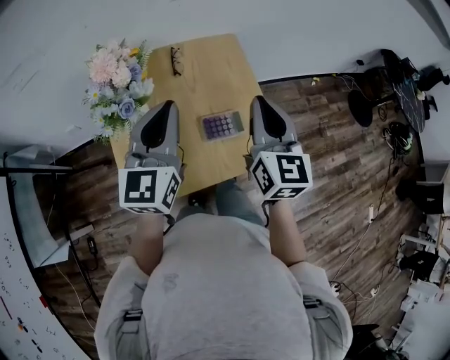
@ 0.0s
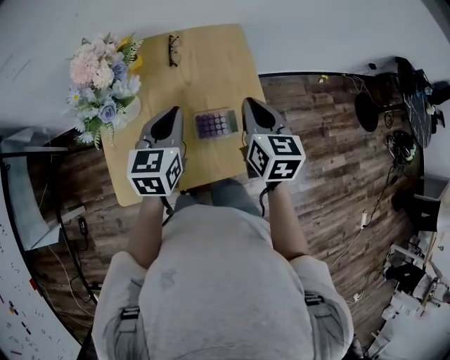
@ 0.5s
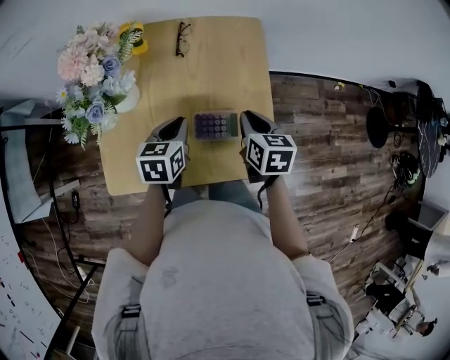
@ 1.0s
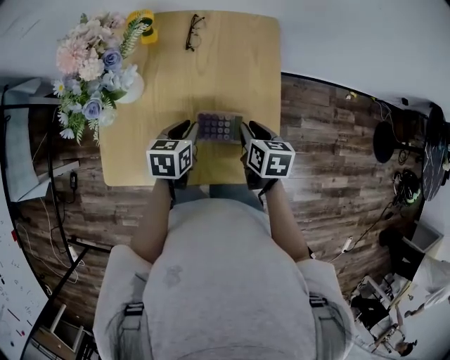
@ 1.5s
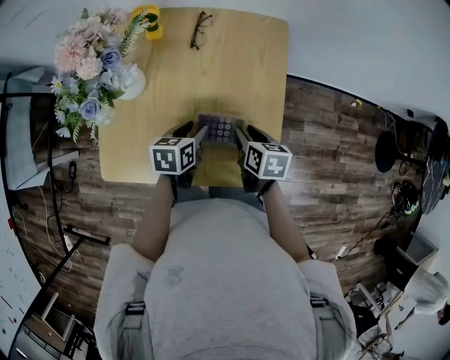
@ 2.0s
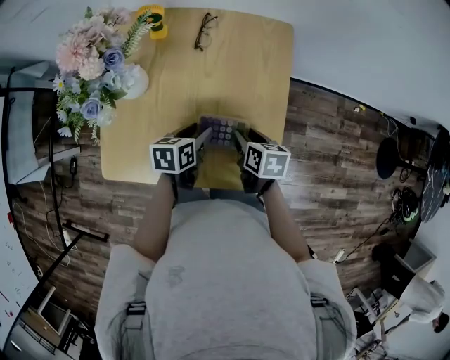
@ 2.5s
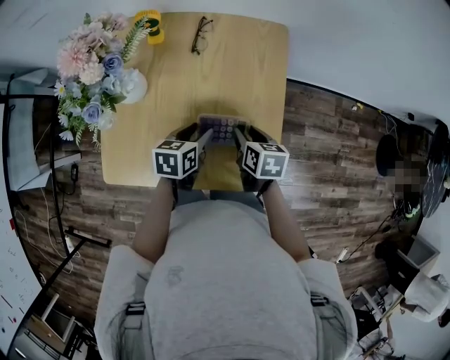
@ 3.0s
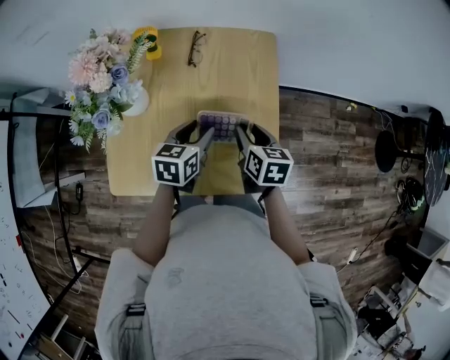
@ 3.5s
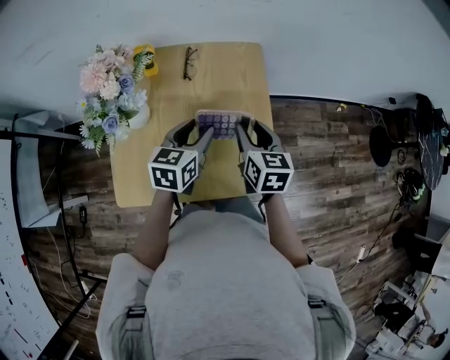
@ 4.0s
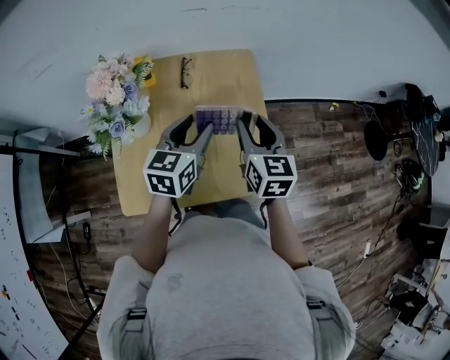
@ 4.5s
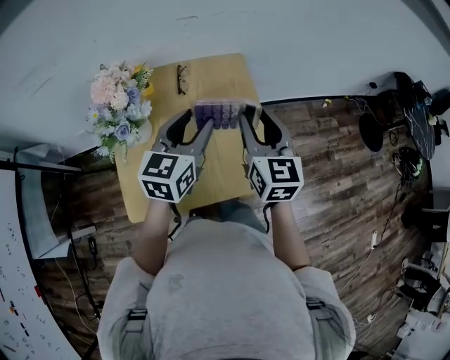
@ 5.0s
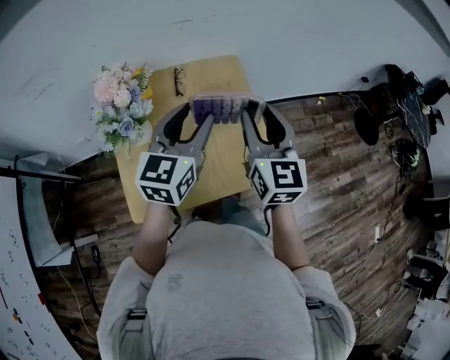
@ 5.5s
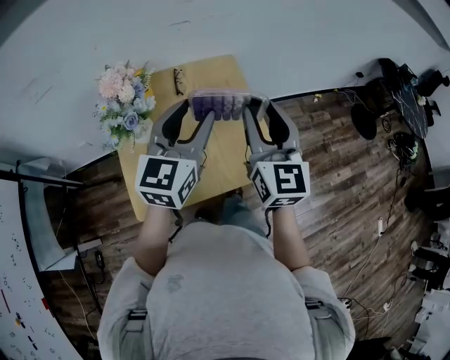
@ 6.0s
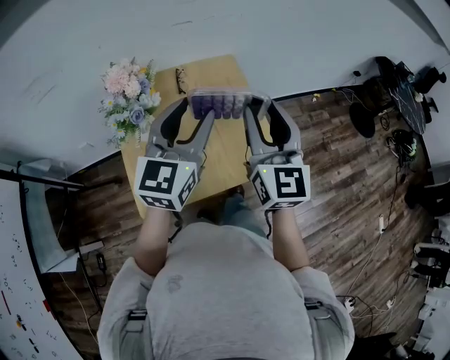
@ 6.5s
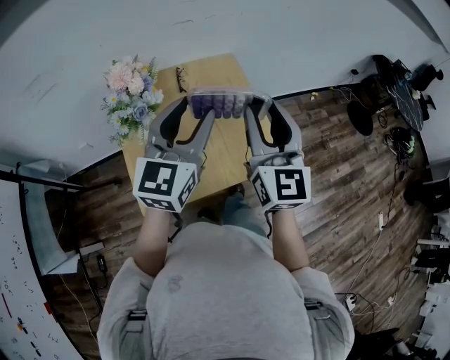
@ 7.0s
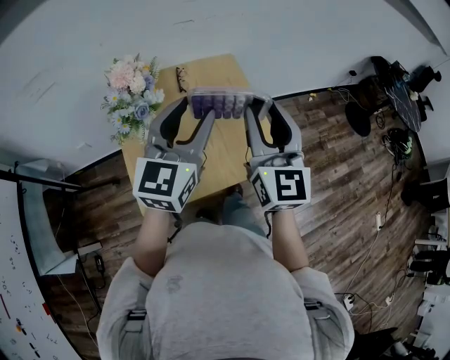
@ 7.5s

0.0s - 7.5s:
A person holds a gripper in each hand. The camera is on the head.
0.0s - 2.0s: The grippers both shift downward by roughly 30 cm. The left gripper tilts its fingers some 50 degrees downward, and opens its fingers; the right gripper tilts its fingers approximately 40 degrees downward, and opens up.
2.0s - 4.0s: The two grippers go roughly 15 cm upward. The right gripper swivels roughly 30 degrees; the left gripper rotates approximately 30 degrees.
4.0s - 5.5s: The two grippers go approximately 20 cm upward. The left gripper changes its angle by roughly 30 degrees. Meanwhile the right gripper turns by some 30 degrees.
5.5s - 7.5s: Both grippers move backward and upward, about 10 cm.

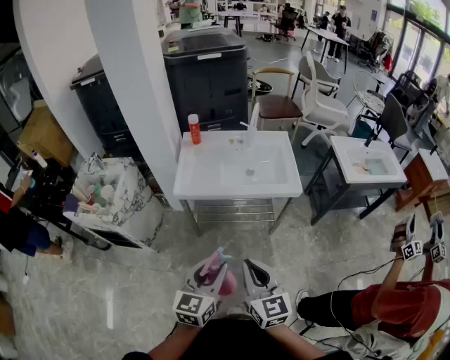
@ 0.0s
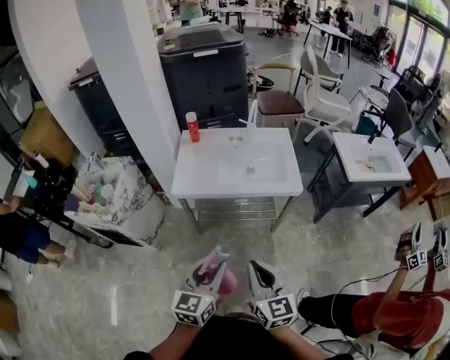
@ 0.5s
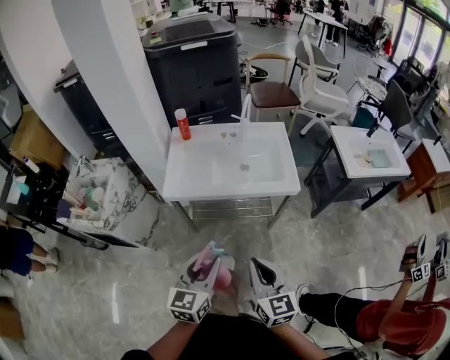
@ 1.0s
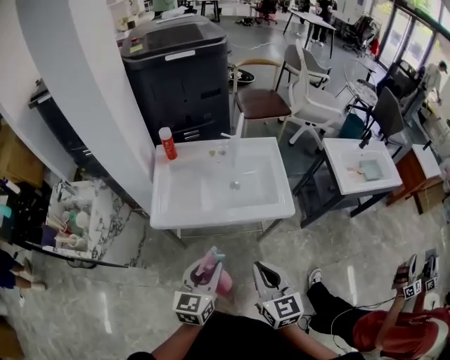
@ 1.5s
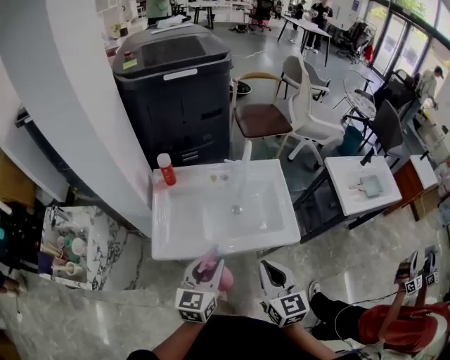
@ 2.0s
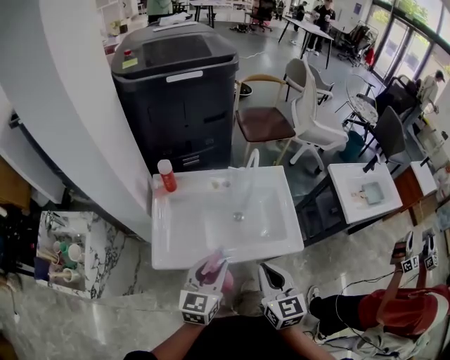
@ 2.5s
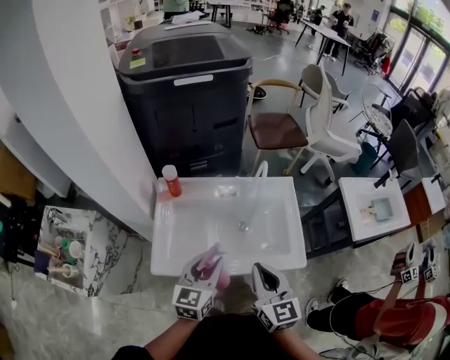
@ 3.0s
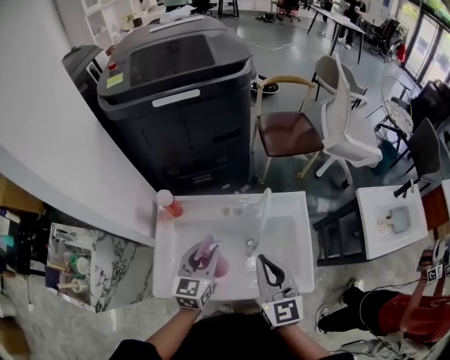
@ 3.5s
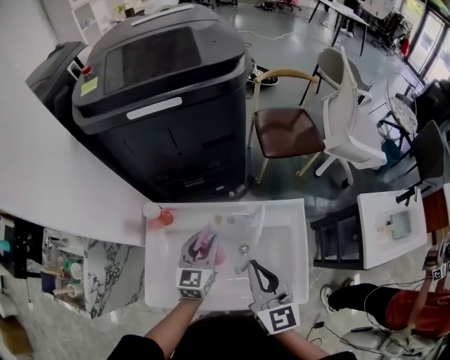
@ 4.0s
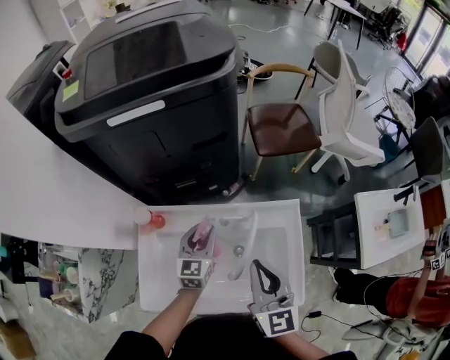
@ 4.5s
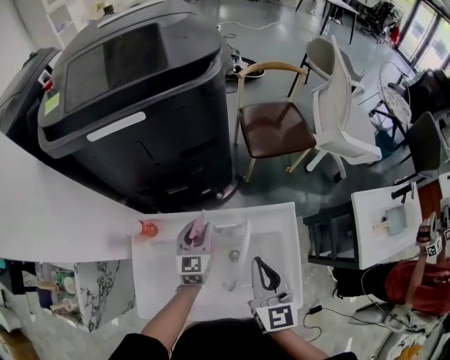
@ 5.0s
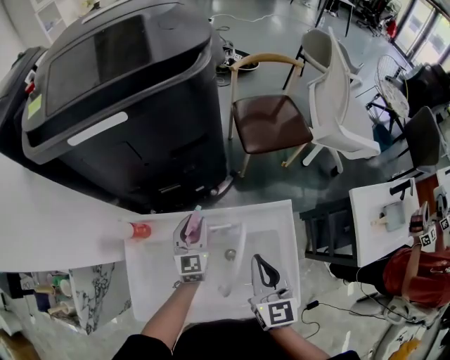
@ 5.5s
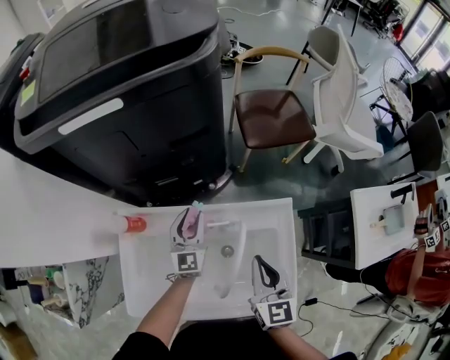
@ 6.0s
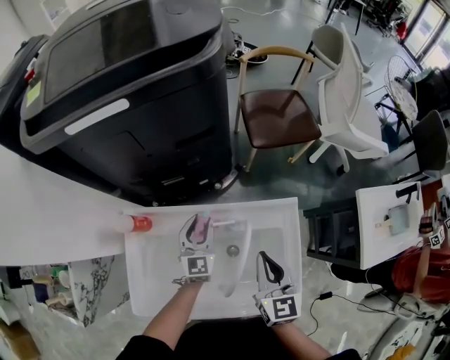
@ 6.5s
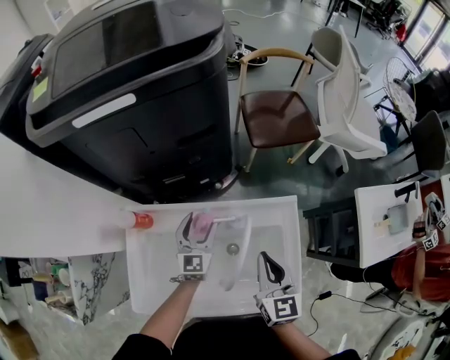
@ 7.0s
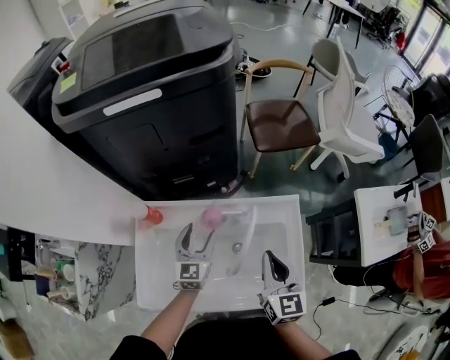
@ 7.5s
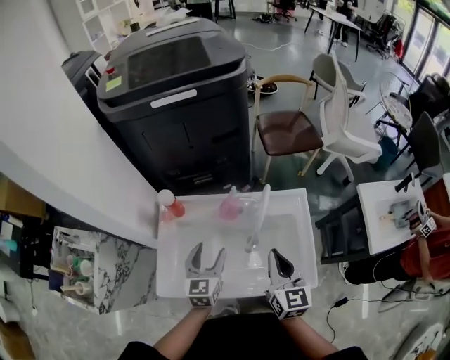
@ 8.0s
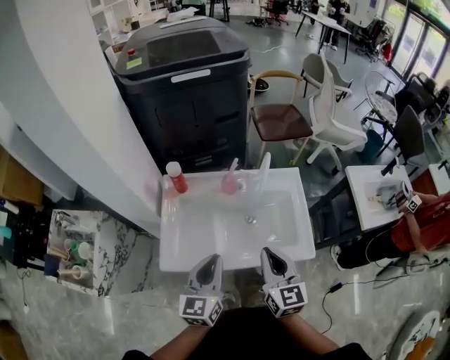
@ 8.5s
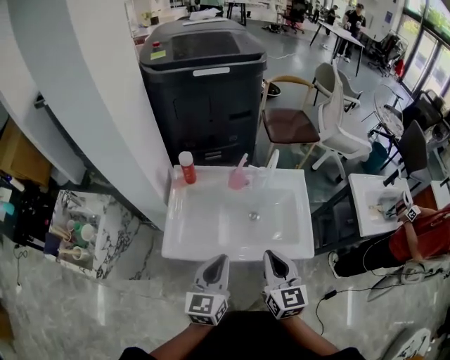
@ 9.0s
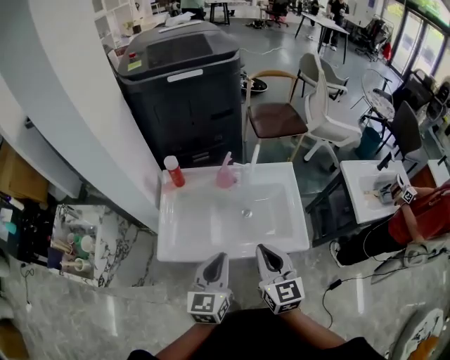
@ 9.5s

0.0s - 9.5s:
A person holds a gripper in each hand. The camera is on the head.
0.0s - 2.0s: The two grippers go about 35 cm forward.
2.0s - 4.0s: The two grippers go approximately 35 cm forward.
4.0s - 5.5s: The right gripper moves forward, to the right and downward, roughly 15 cm, while the left gripper travels forward and downward by roughly 15 cm.
5.5s - 7.5s: The left gripper travels backward by about 10 cm, and opens up.
7.5s - 9.5s: The left gripper shifts roughly 40 cm backward and upward, and closes up. Meanwhile the right gripper goes roughly 25 cm backward.

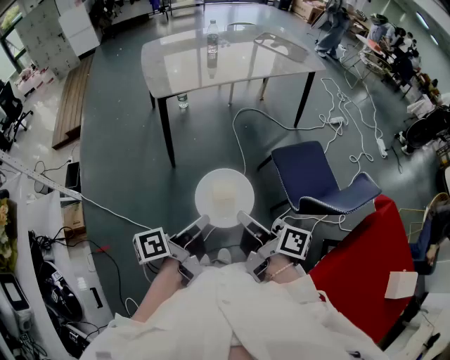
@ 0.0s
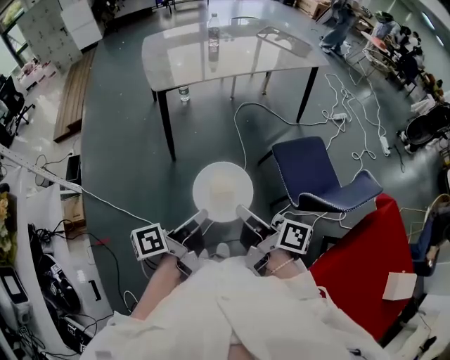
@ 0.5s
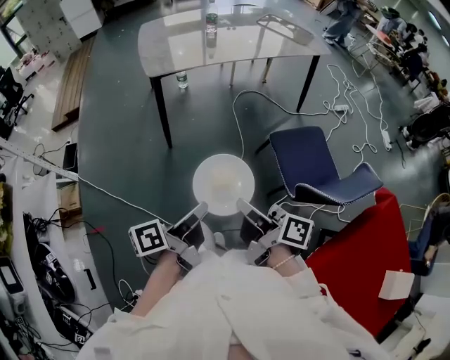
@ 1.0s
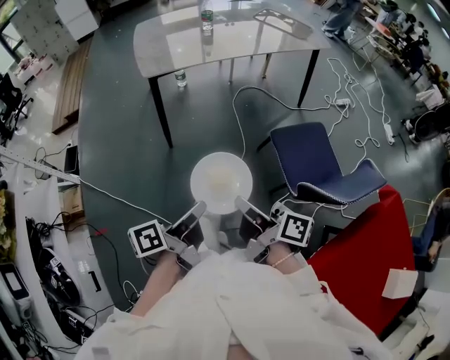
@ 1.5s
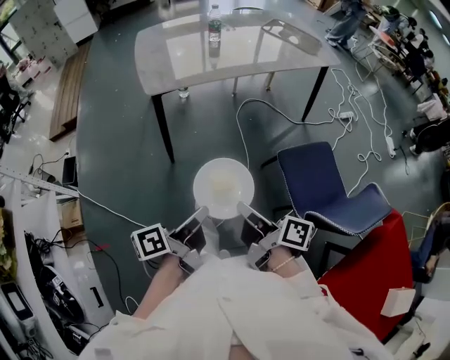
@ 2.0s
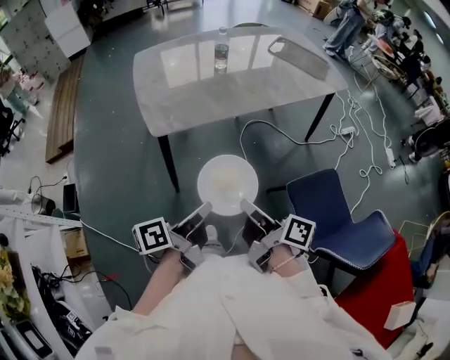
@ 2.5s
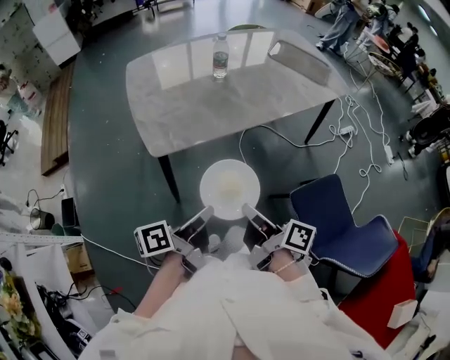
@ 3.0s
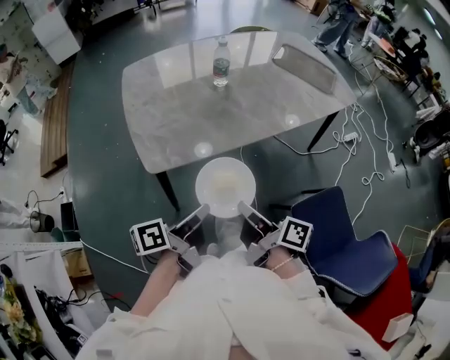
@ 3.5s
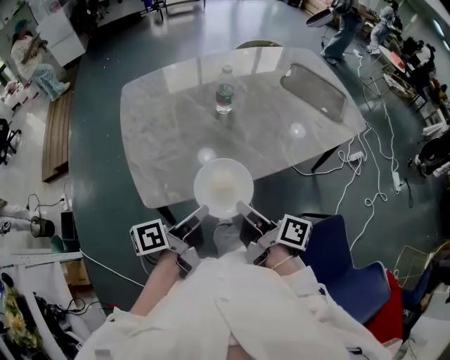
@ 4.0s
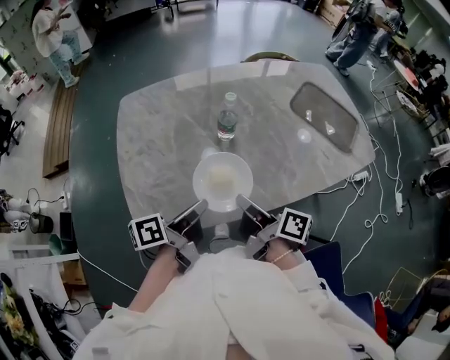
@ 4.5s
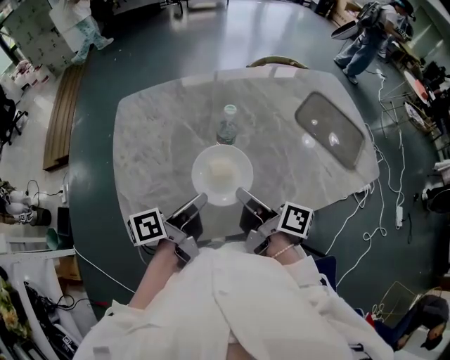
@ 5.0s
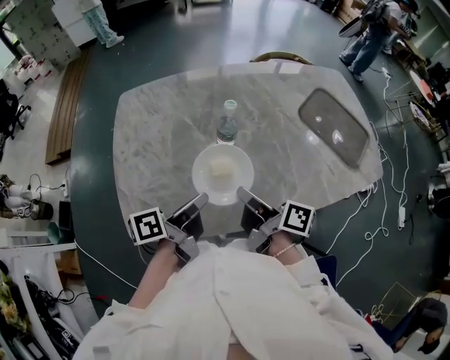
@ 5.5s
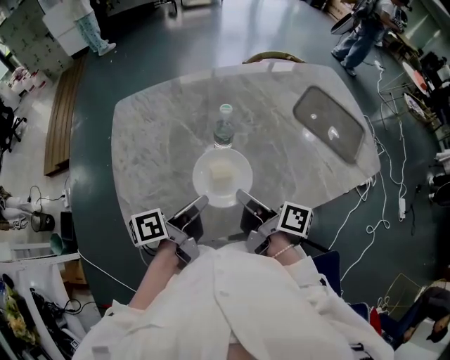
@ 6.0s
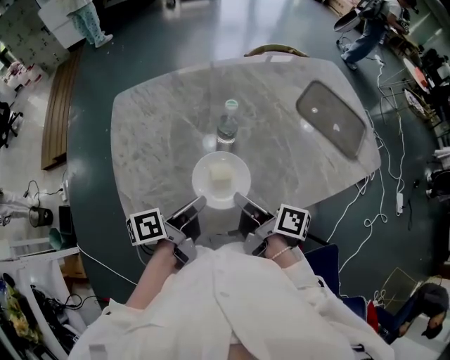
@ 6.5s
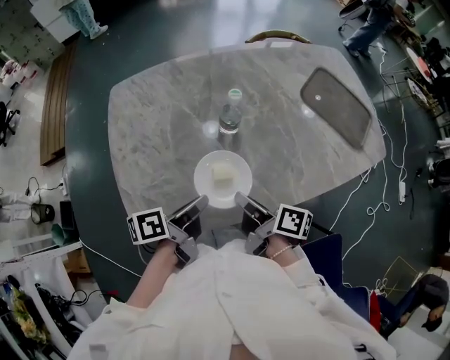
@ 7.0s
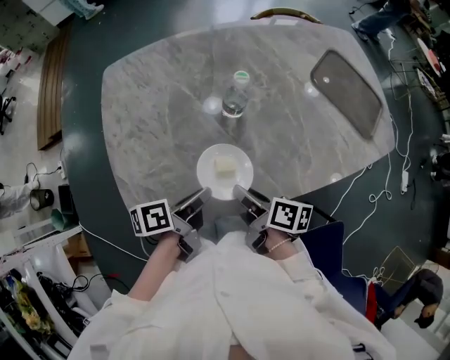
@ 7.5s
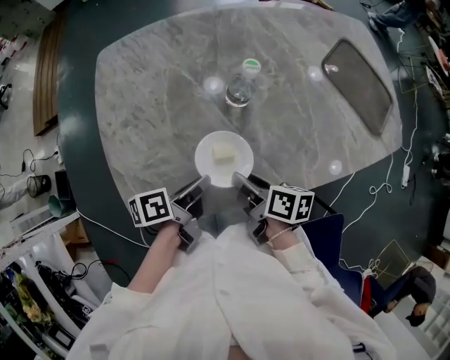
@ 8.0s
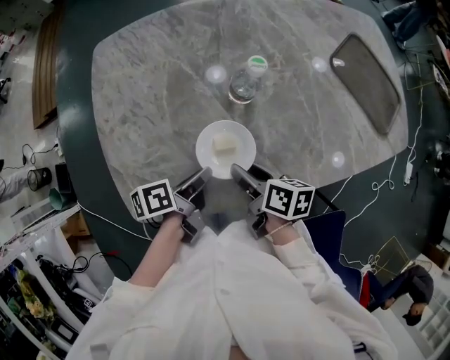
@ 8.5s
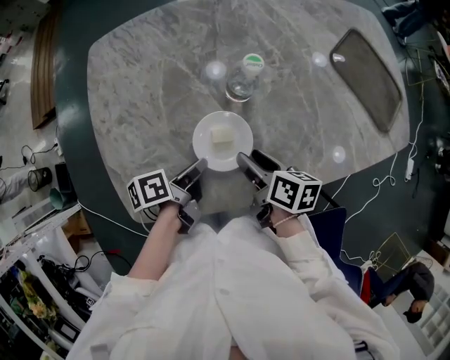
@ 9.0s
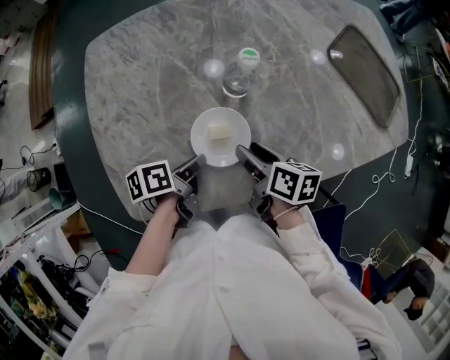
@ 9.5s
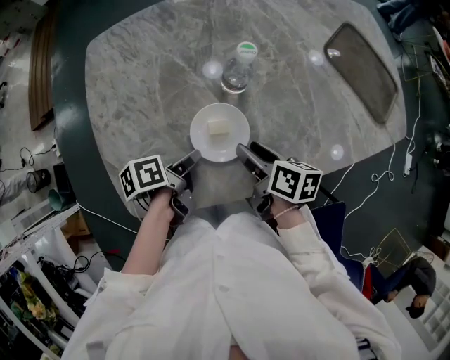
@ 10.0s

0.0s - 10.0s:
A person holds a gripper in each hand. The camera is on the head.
0.0s - 2.0s: The right gripper changes place by about 15 cm.
2.0s - 4.0s: The right gripper moves roughly 50 cm.
4.0s - 6.0s: The right gripper shifts by about 20 cm.
6.0s - 8.0s: The right gripper heads downward, covering about 10 cm, turns by approximately 30 degrees, and opens.
8.0s - 10.0s: The right gripper ends up roughly 5 cm from where it was.
